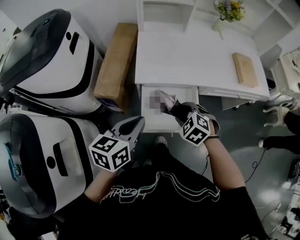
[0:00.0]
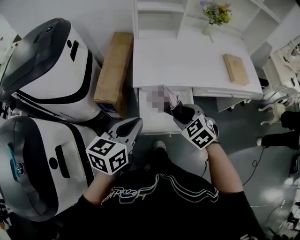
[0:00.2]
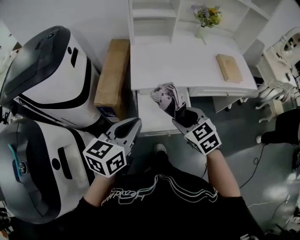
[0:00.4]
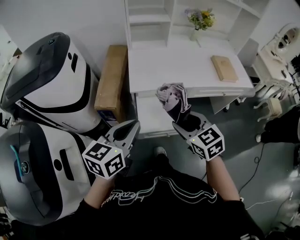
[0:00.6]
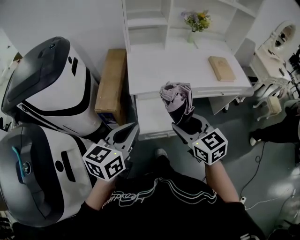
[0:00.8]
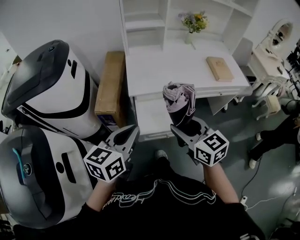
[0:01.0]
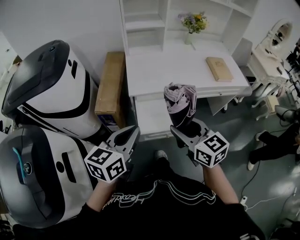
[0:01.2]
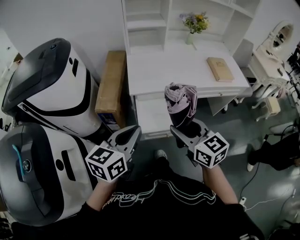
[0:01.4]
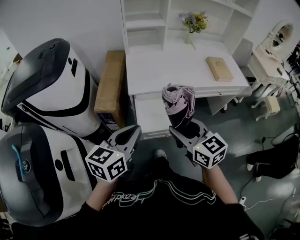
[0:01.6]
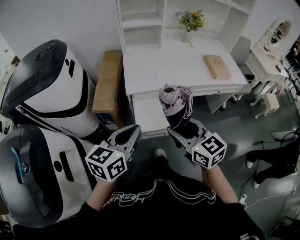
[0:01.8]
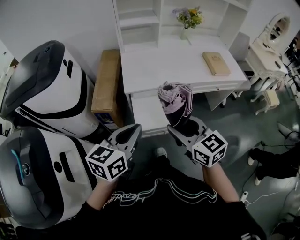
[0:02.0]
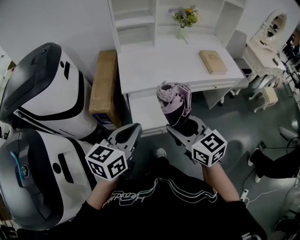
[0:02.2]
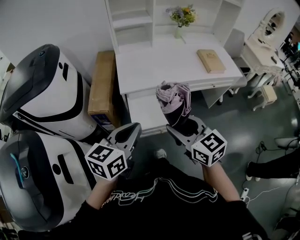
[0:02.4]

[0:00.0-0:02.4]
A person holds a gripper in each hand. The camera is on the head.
0.0 to 1.2 s: The left gripper heads backward and upward, covering roughly 15 cm; the right gripper goes about 25 cm upward and backward, and tips its fingers upward by some 40 degrees.
1.2 to 2.4 s: The grippers stay close to where they were, moving slightly.

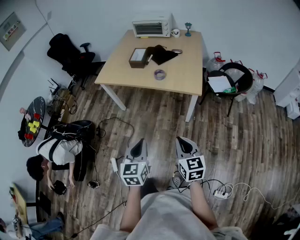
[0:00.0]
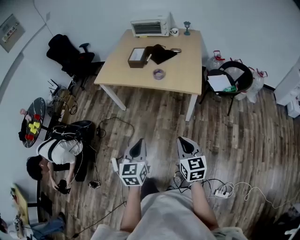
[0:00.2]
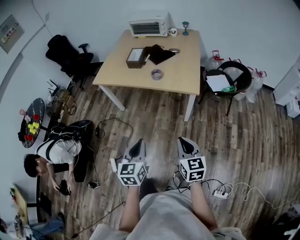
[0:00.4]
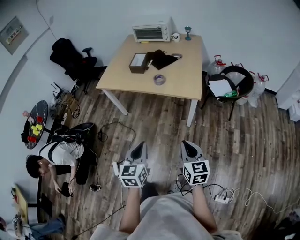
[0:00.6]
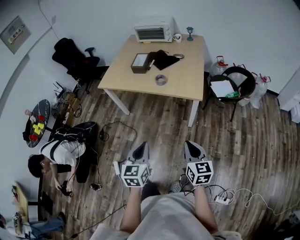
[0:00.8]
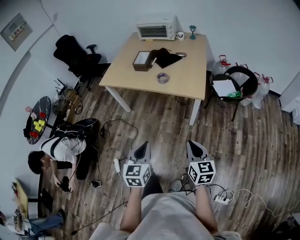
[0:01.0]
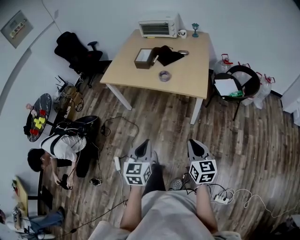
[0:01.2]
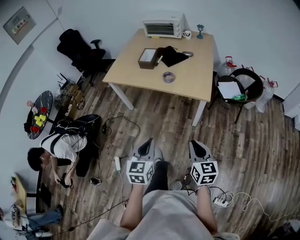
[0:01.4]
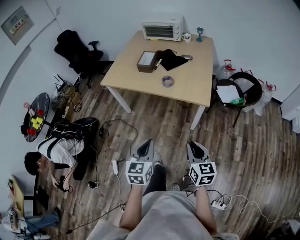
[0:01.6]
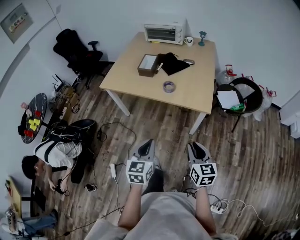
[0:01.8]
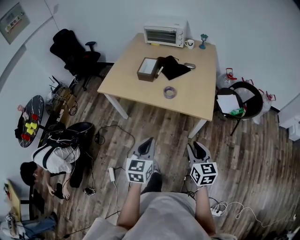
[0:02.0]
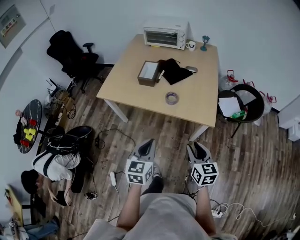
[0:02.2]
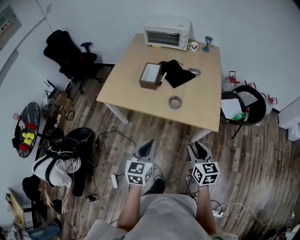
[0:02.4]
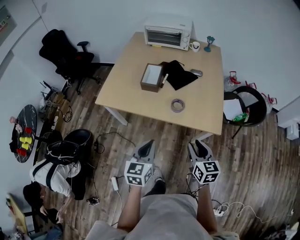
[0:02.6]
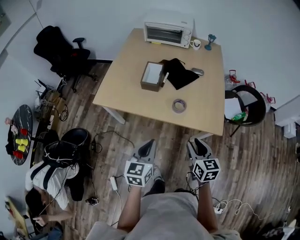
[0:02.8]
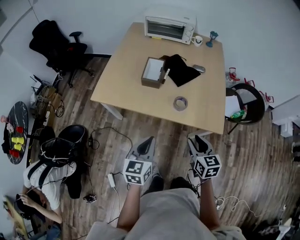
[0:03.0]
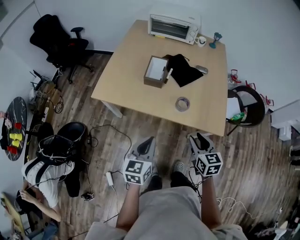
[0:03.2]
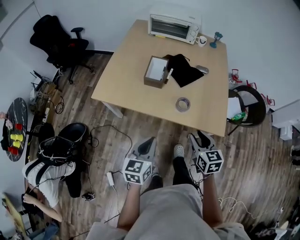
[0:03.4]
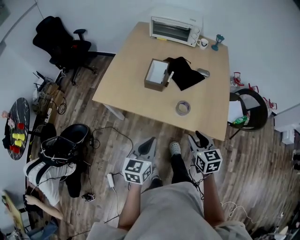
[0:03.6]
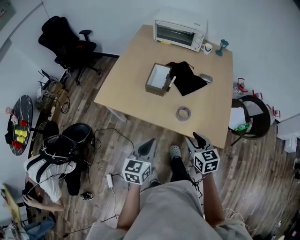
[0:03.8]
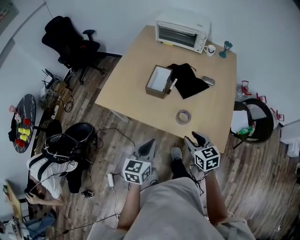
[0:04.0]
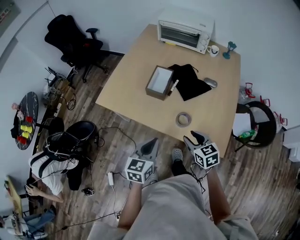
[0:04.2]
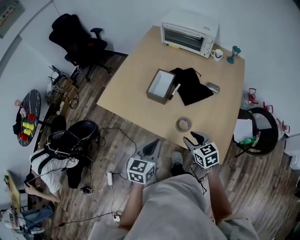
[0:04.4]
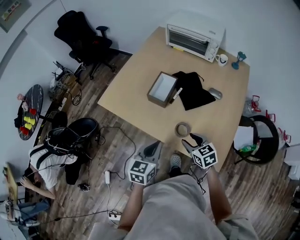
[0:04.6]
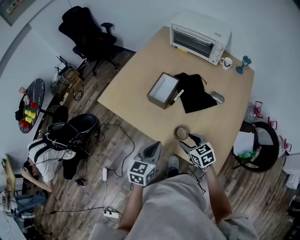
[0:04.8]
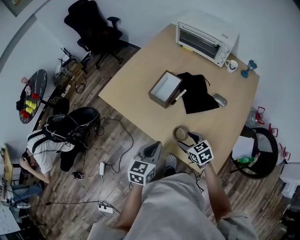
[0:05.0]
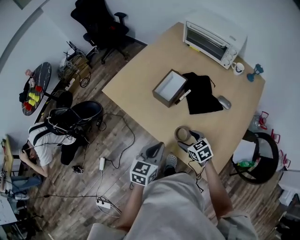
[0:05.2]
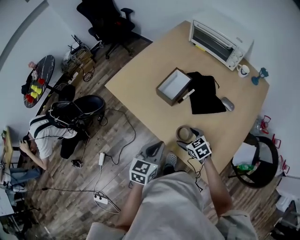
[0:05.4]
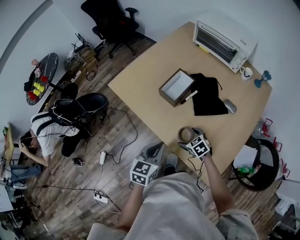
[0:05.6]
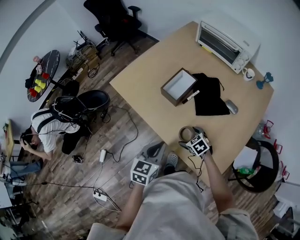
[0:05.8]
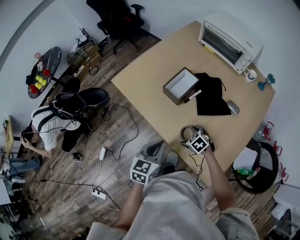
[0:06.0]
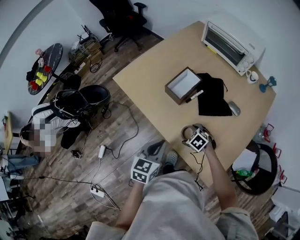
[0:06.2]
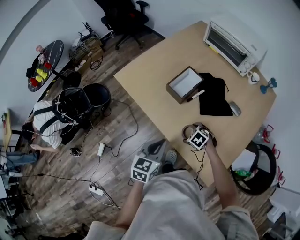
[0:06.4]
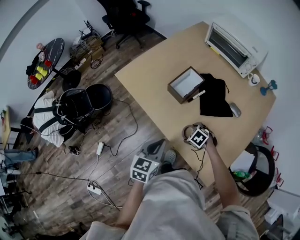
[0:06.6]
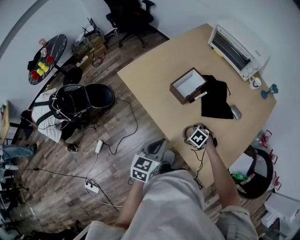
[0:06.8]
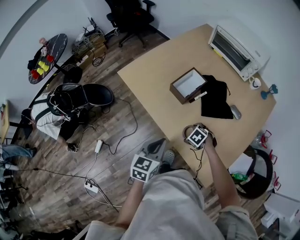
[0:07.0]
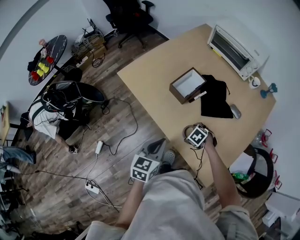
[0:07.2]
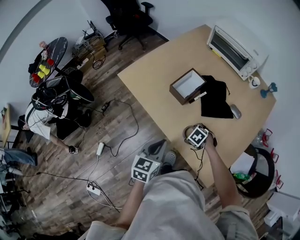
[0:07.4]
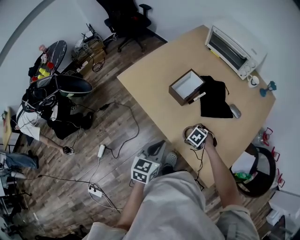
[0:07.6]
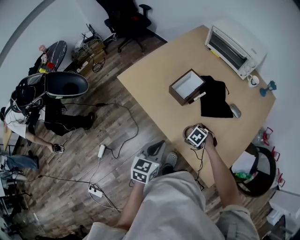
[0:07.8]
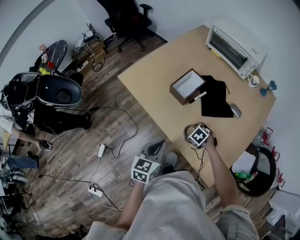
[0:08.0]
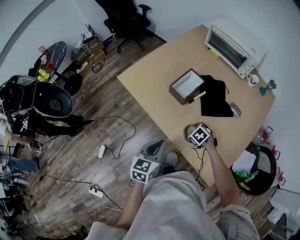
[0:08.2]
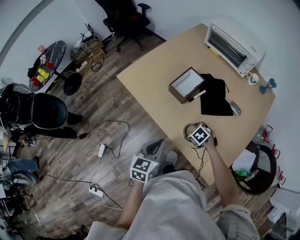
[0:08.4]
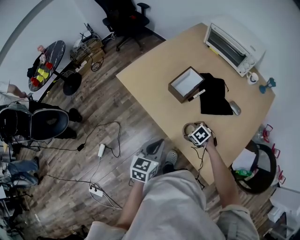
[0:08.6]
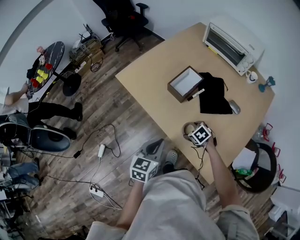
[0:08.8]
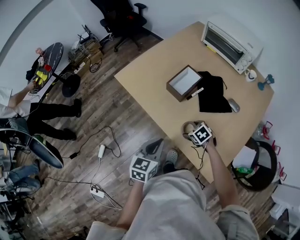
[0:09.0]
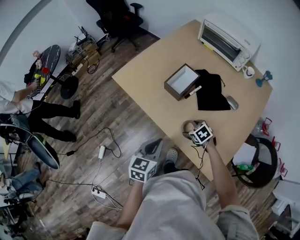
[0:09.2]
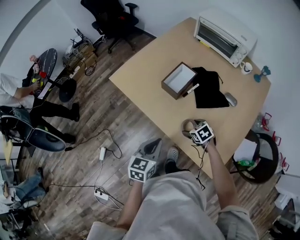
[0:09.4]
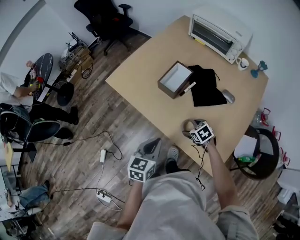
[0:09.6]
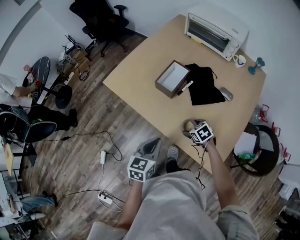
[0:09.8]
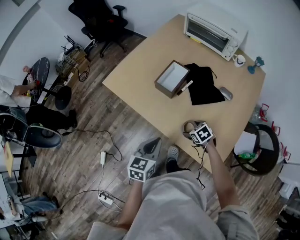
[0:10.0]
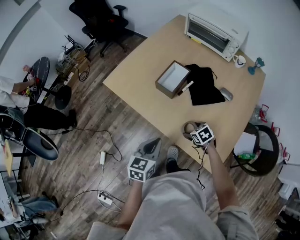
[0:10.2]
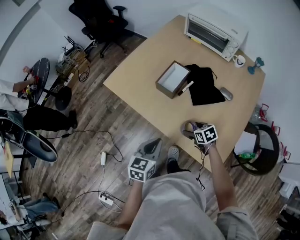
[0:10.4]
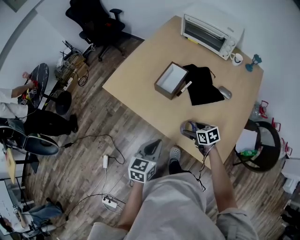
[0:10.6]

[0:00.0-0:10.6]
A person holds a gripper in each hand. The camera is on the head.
0.0 to 1.6 s: The left gripper heads forward, covering about 5 cm, while the right gripper shifts approximately 10 cm forward and to the right.
1.6 to 3.0 s: The grippers both shift forward and to the left by about 35 cm.
3.0 to 4.6 s: The left gripper shifts roughly 15 cm forward and to the right, while the right gripper travels forward and downward by roughly 20 cm, and swivels some 40 degrees.
4.6 to 6.0 s: The right gripper goes about 15 cm downward, rotates about 40 degrees, and opens up.
6.0 to 9.0 s: The grippers make only small movements.
9.0 to 10.6 s: The right gripper rotates roughly 40 degrees.

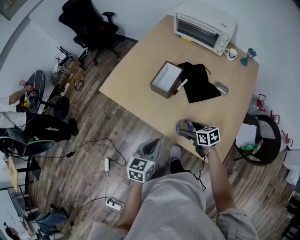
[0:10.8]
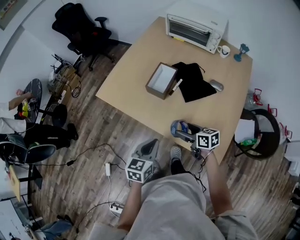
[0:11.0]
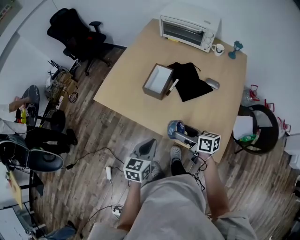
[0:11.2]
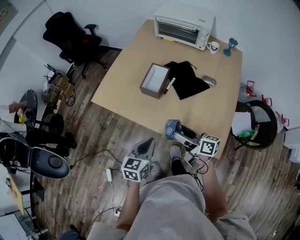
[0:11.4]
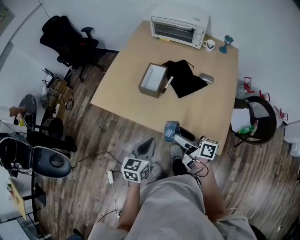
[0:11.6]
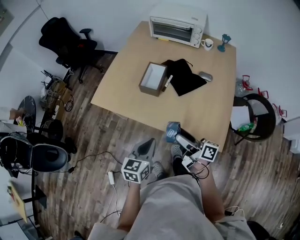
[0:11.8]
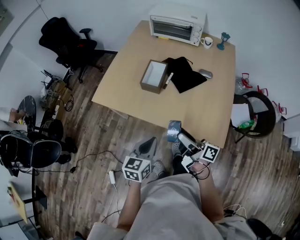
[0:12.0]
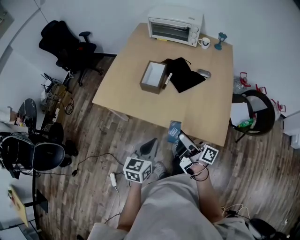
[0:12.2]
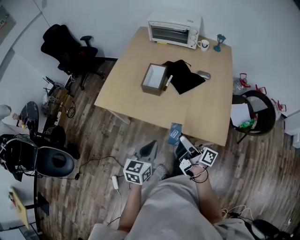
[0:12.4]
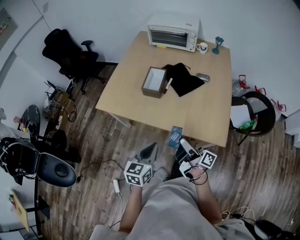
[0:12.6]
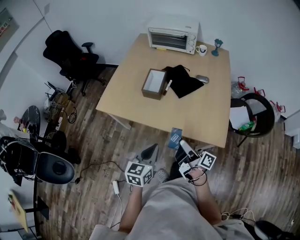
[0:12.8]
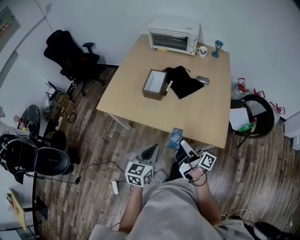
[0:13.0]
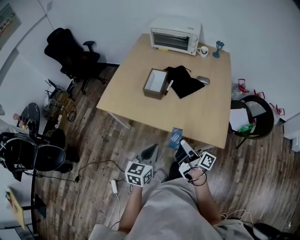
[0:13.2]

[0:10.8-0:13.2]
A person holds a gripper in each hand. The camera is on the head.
10.8 to 12.0 s: The left gripper shifts by about 5 cm; the right gripper shifts roughly 20 cm upward and backward, and tips its fingers upward by about 50 degrees.
12.0 to 13.2 s: The right gripper travels backward by about 5 cm. Meanwhile the left gripper ends up roughly 5 cm from where it was.

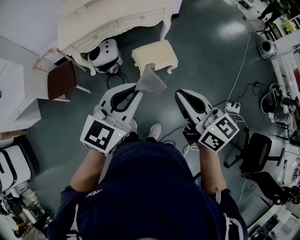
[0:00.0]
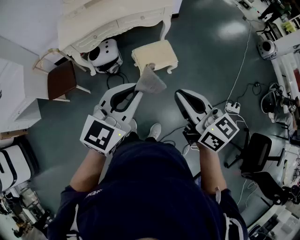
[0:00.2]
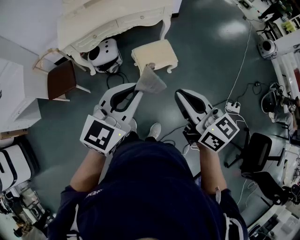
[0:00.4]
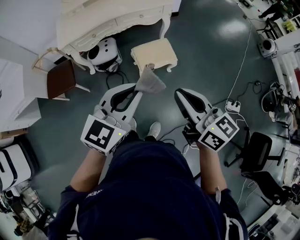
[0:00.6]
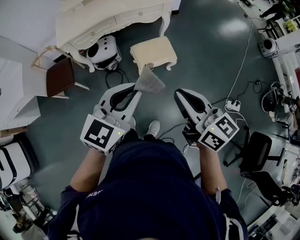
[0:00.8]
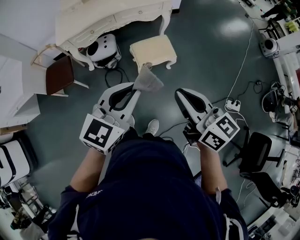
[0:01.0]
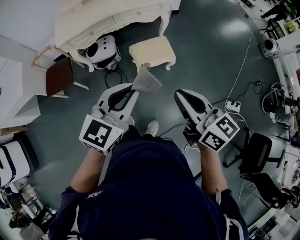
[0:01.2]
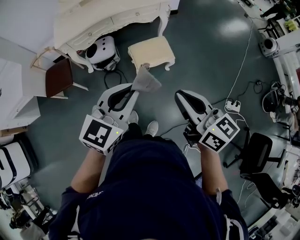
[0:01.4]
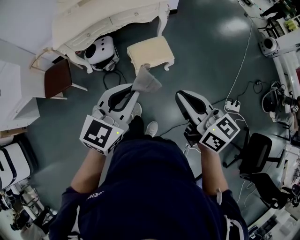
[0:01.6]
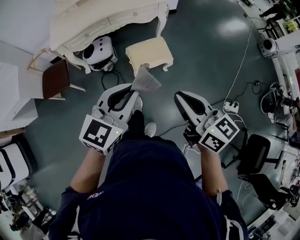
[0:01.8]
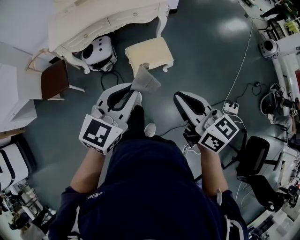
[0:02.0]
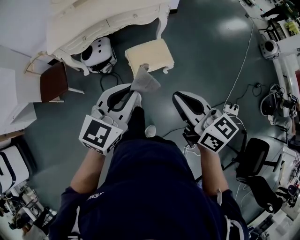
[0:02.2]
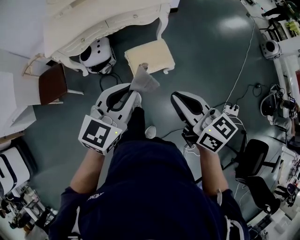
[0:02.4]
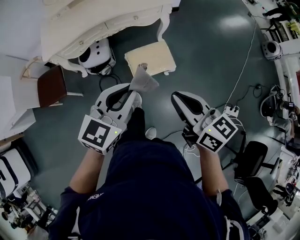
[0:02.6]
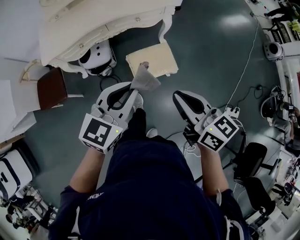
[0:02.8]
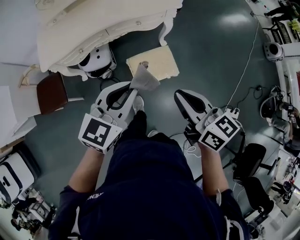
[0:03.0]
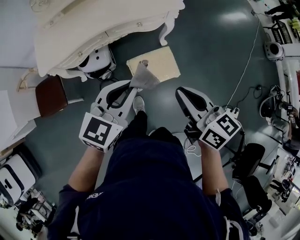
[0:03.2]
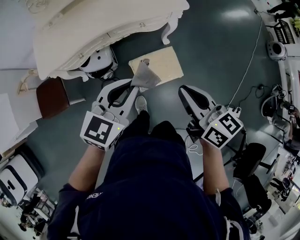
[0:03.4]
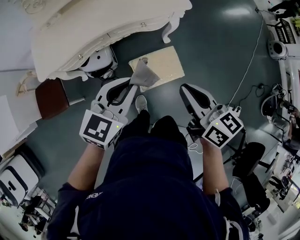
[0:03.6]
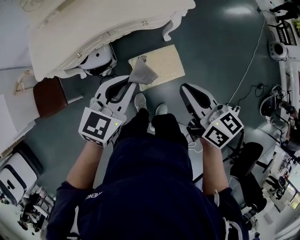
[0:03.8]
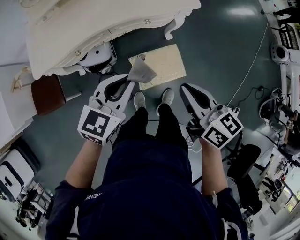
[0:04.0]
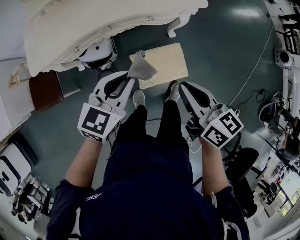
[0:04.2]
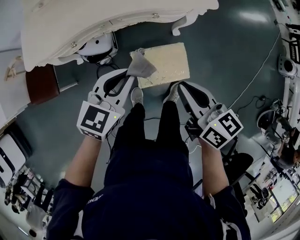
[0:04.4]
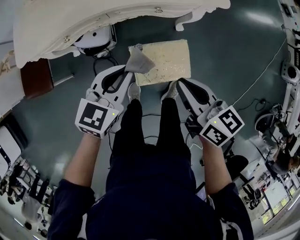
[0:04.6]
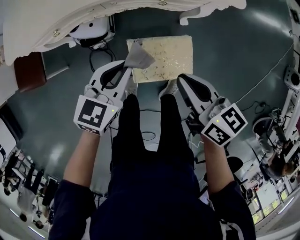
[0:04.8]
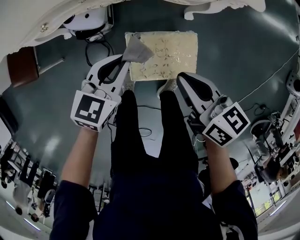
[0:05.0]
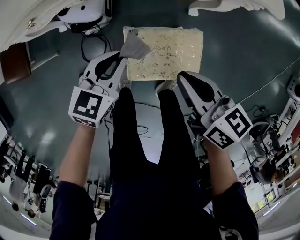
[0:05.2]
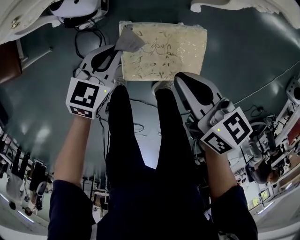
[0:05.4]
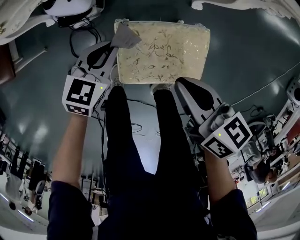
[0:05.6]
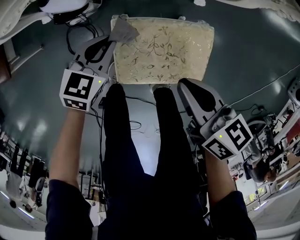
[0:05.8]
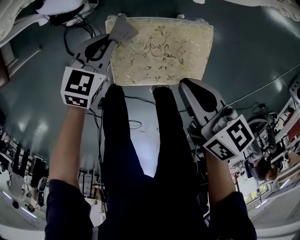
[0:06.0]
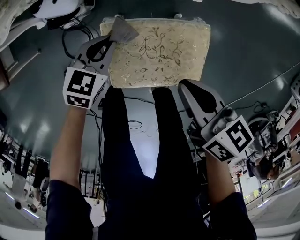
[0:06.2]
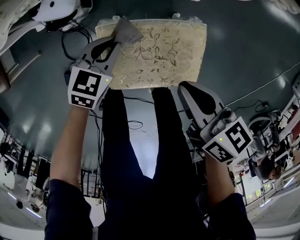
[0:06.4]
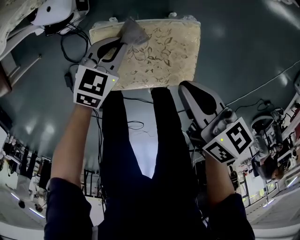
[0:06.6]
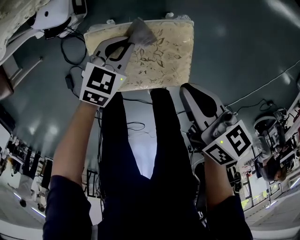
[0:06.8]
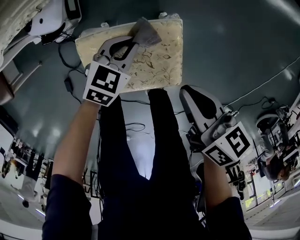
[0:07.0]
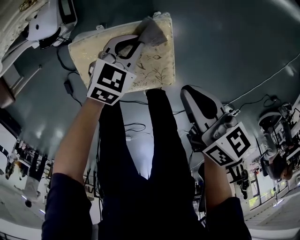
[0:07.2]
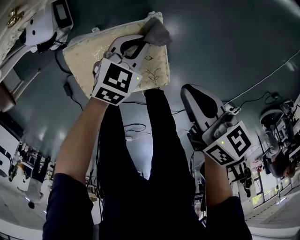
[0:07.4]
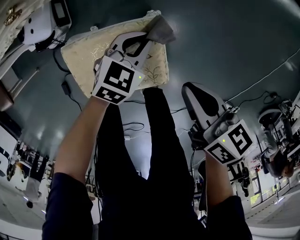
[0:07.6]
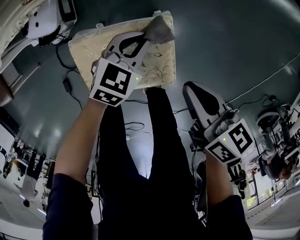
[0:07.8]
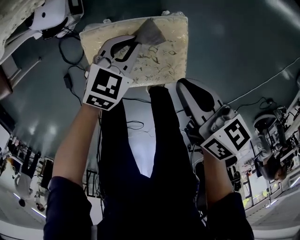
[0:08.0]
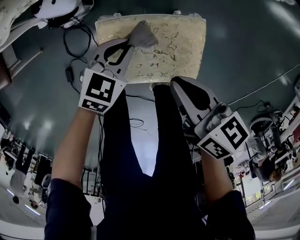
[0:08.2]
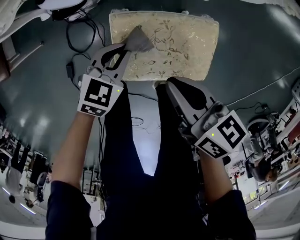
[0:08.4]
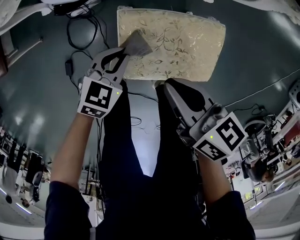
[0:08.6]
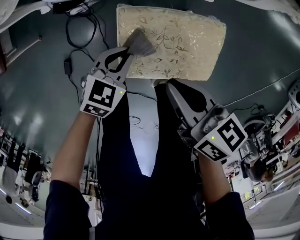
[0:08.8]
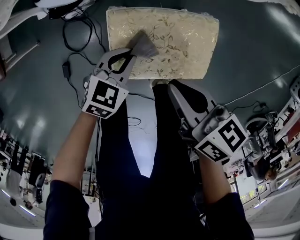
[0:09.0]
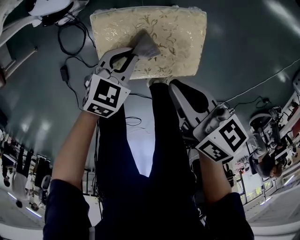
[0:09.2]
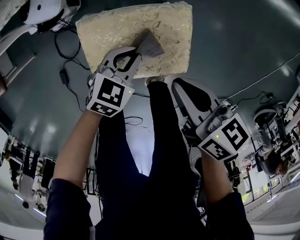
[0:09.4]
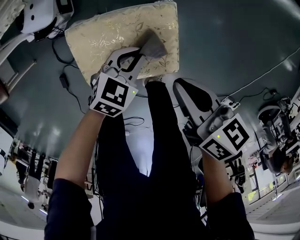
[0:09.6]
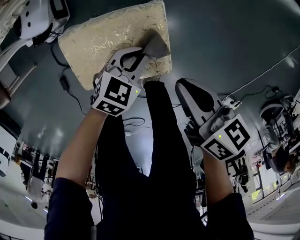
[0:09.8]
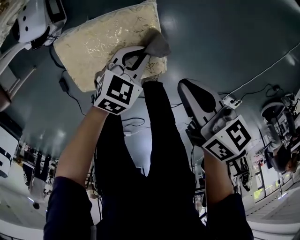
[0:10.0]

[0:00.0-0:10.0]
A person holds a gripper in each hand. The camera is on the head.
0.0 to 1.4 s: The right gripper moves to the right, some 5 cm.
1.4 to 2.8 s: Both grippers move forward, approximately 20 cm.
2.8 to 4.2 s: The grippers both shift forward and downward by some 20 cm.
4.2 to 5.8 s: Both grippers travel together downward, approximately 40 cm. The left gripper turns by roughly 20 degrees; the right gripper swivels about 30 degrees.
5.8 to 7.2 s: Both grippers travel together to the right, about 20 cm.
7.2 to 8.6 s: The right gripper shifts roughly 20 cm to the left. Meanwhile the left gripper moves to the left and backward, about 25 cm.
8.6 to 10.0 s: The grippers both shift to the right by about 25 cm.
